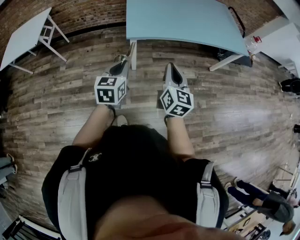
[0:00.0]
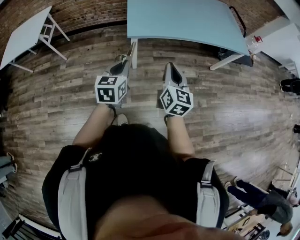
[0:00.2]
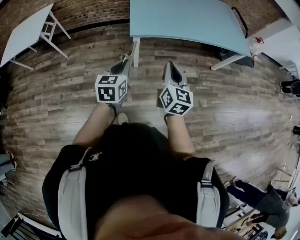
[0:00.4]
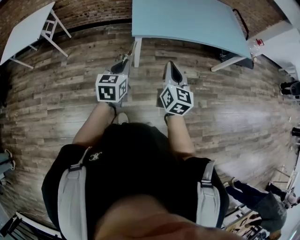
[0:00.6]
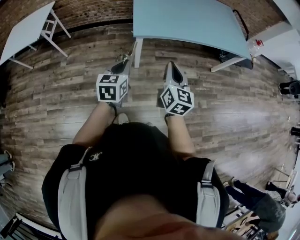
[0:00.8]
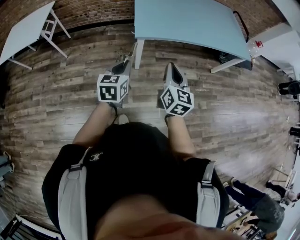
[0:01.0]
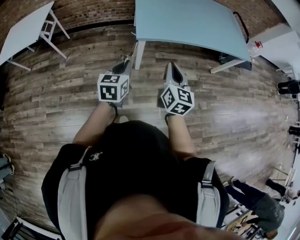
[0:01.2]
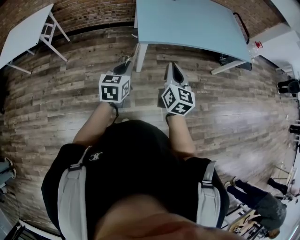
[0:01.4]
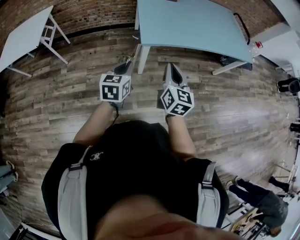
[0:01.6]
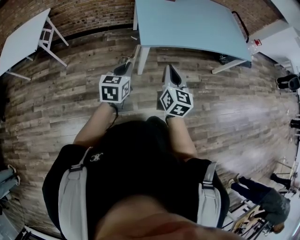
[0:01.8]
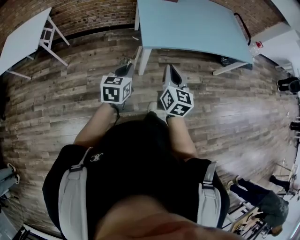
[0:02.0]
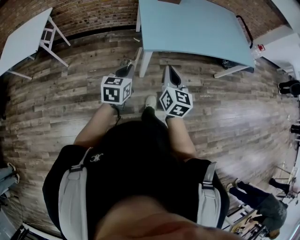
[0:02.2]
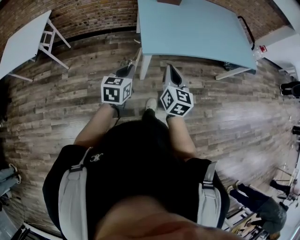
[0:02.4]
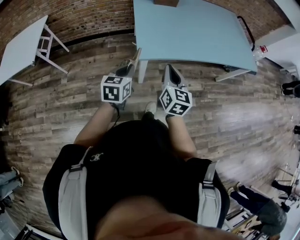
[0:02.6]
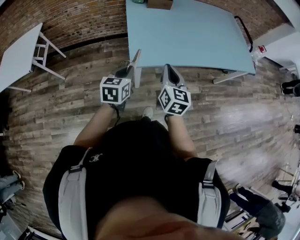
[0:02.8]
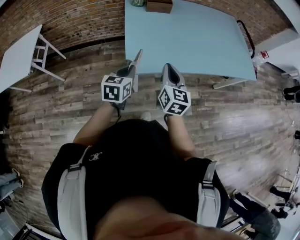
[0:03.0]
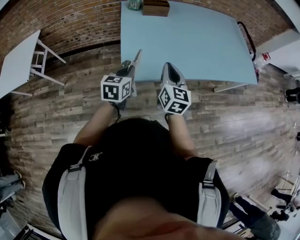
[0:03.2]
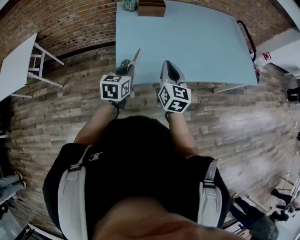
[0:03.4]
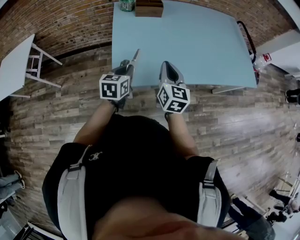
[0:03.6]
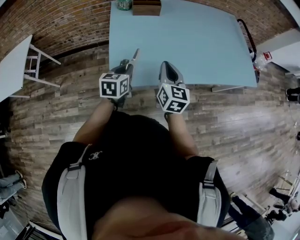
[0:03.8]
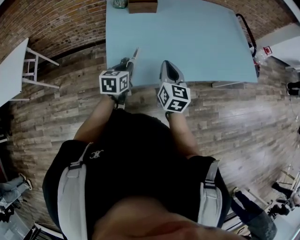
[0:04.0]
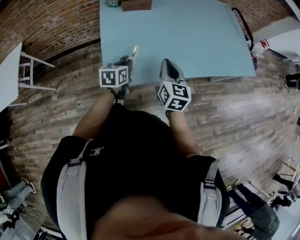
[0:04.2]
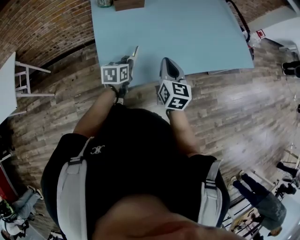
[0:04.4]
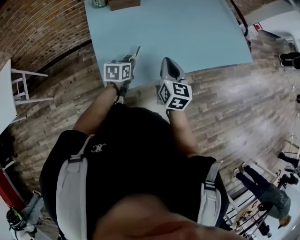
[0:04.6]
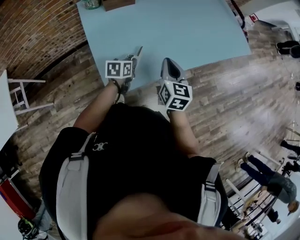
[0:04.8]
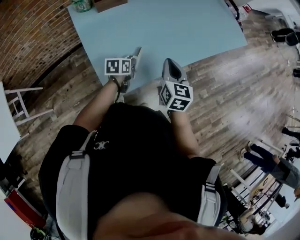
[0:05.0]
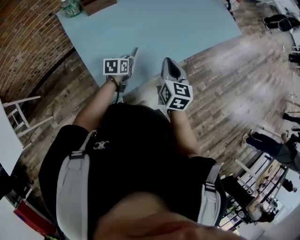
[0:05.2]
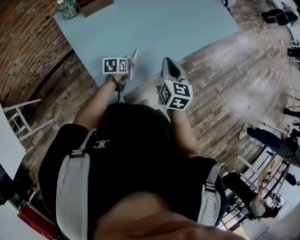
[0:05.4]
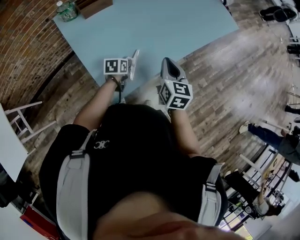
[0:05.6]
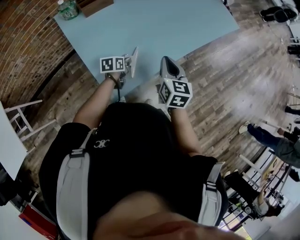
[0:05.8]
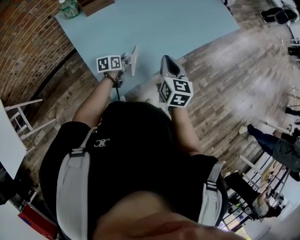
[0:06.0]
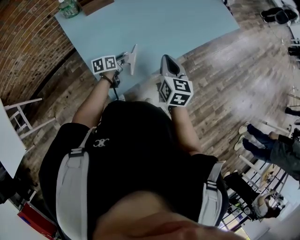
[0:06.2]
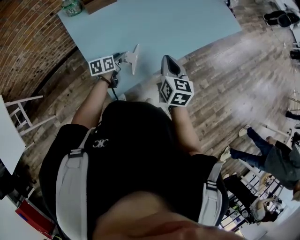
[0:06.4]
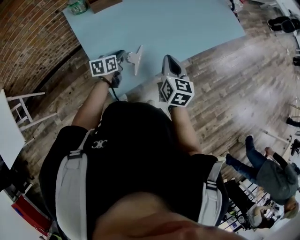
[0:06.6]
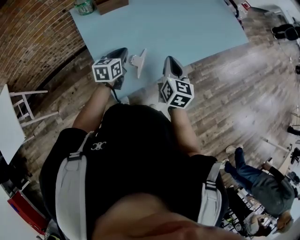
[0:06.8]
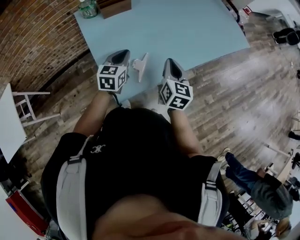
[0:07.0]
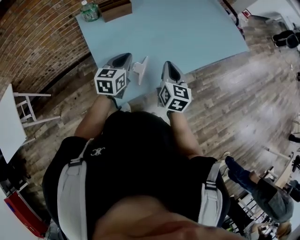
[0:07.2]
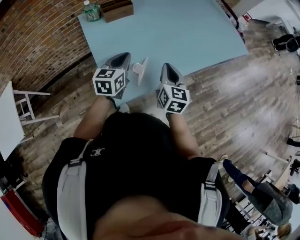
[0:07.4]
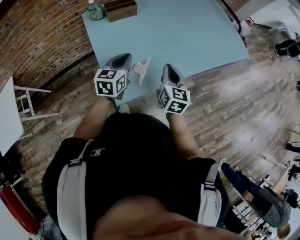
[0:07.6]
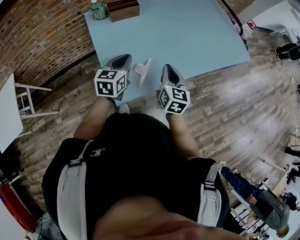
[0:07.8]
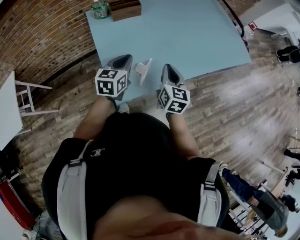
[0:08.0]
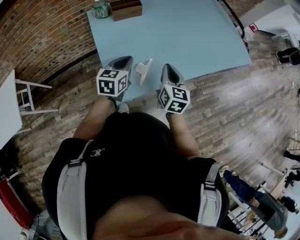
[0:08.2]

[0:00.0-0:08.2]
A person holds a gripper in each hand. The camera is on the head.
0.0 to 1.6 s: The left gripper travels to the left and forward by some 10 cm. The right gripper is displaced to the left by approximately 10 cm.
1.6 to 3.2 s: Both grippers move forward, approximately 25 cm.
3.2 to 5.0 s: The right gripper ends up approximately 15 cm from where it was, and turns by some 20 degrees. The left gripper shifts some 20 cm downward, and swivels approximately 40 degrees.
5.0 to 6.6 s: The left gripper shifts about 5 cm to the left, and opens and closes again.
6.6 to 8.2 s: The left gripper shifts about 15 cm upward, and swivels roughly 30 degrees.

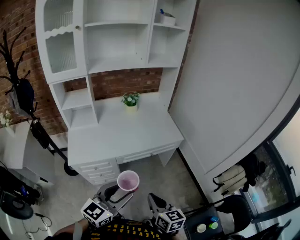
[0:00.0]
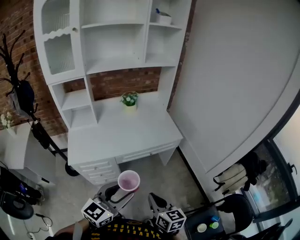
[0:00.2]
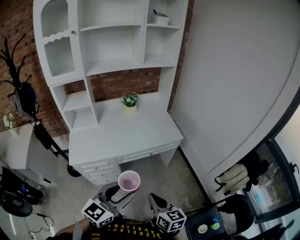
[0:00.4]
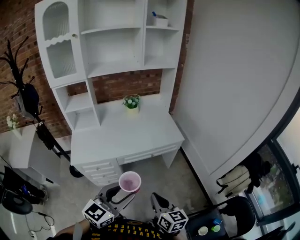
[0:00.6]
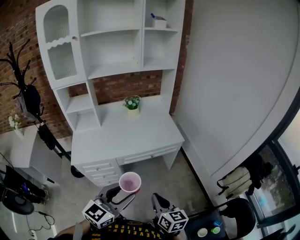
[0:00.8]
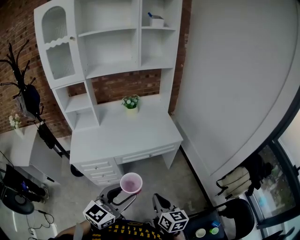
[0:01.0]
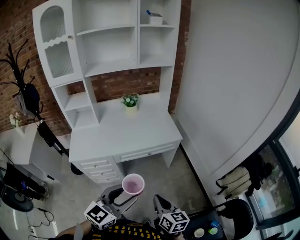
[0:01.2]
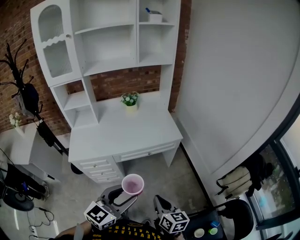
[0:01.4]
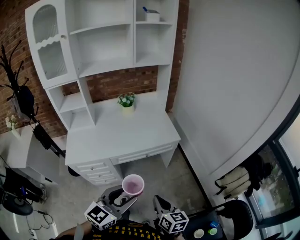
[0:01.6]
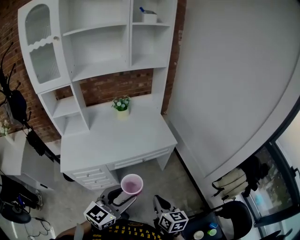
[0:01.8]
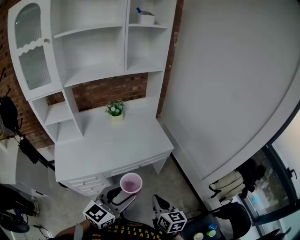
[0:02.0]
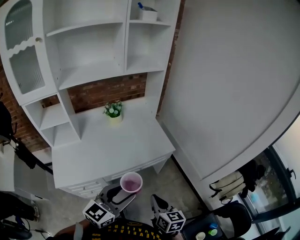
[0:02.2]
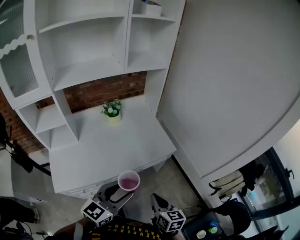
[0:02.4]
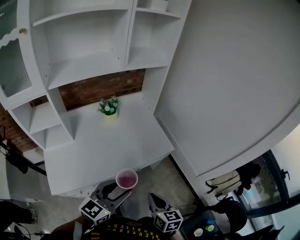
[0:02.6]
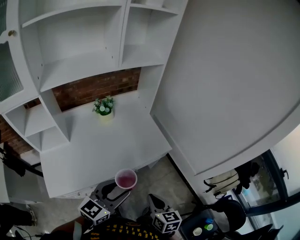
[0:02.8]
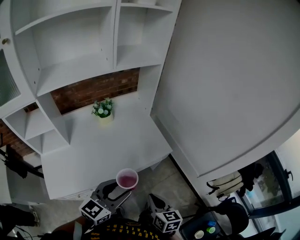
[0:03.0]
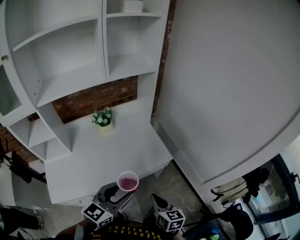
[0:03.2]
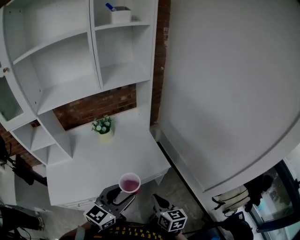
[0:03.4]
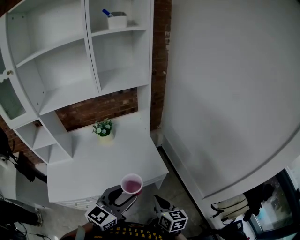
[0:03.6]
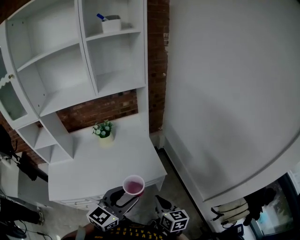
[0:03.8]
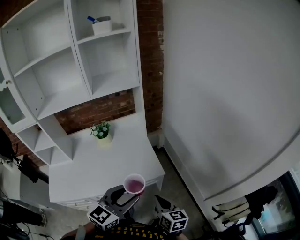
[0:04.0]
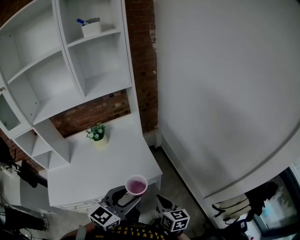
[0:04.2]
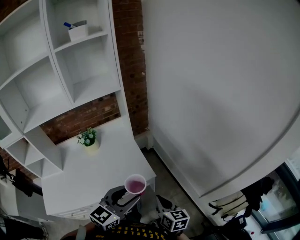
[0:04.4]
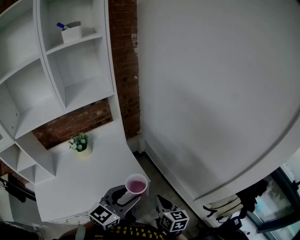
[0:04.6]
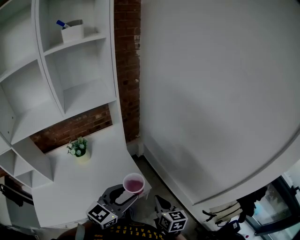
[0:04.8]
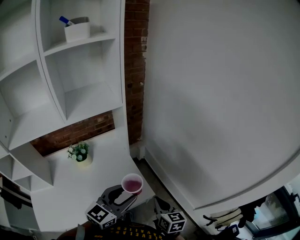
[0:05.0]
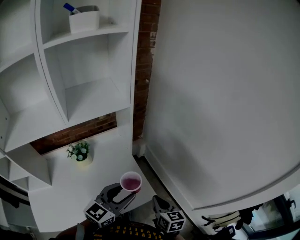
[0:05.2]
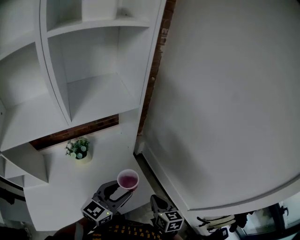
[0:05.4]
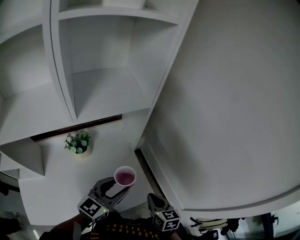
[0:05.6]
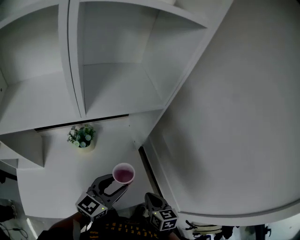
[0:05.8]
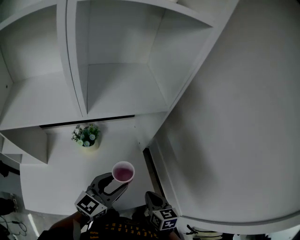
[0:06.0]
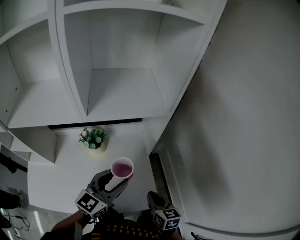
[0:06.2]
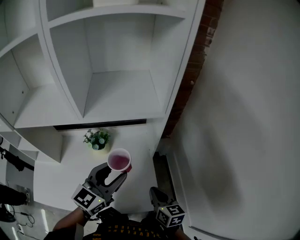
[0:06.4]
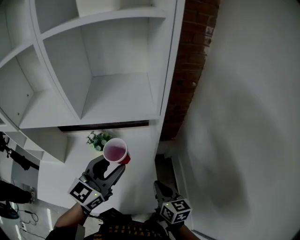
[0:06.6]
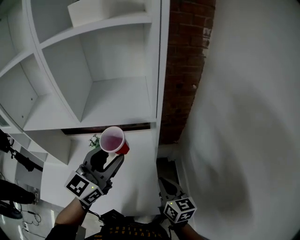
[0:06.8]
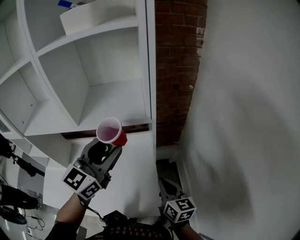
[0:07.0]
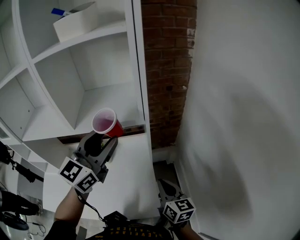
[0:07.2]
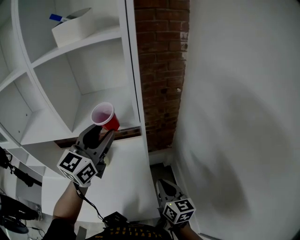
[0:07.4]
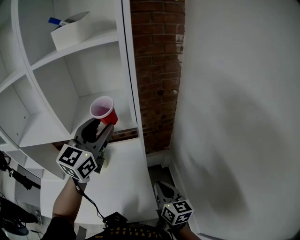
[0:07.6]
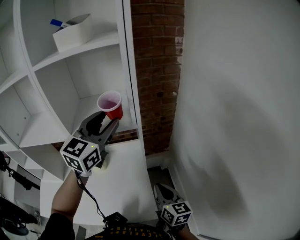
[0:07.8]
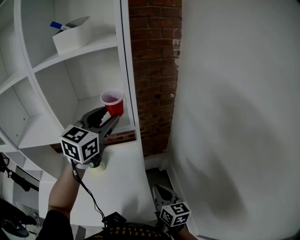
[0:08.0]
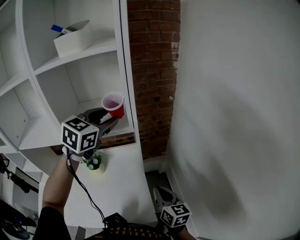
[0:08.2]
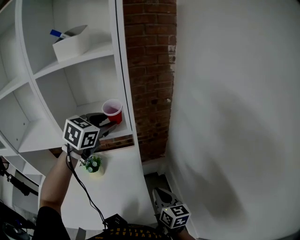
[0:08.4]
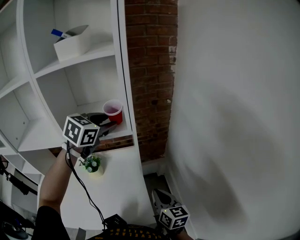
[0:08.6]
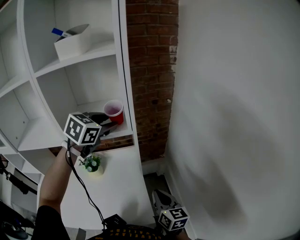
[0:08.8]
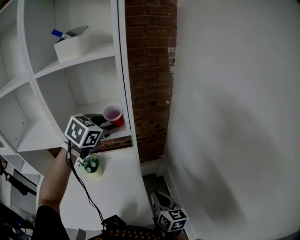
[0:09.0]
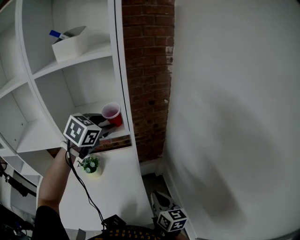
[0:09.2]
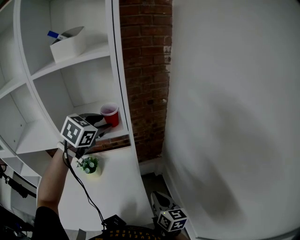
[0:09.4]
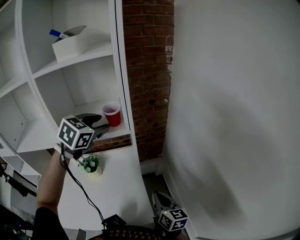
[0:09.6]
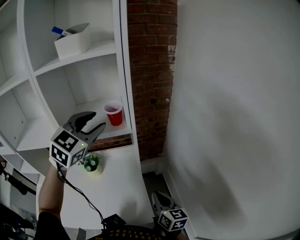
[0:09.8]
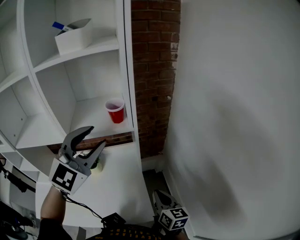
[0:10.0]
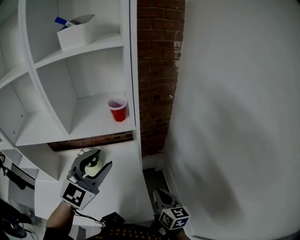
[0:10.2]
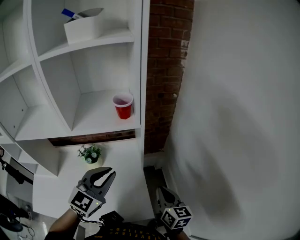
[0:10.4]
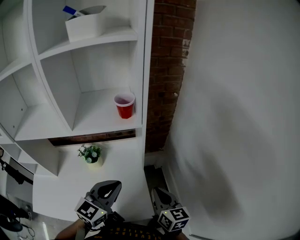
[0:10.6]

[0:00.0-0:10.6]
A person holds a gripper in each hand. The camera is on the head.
0.0 to 1.6 s: Both grippers move to the right, roughly 15 cm.
1.6 to 3.0 s: Both grippers travel together forward and to the left, some 25 cm.
3.0 to 4.6 s: Both grippers travel together to the right and forward, roughly 30 cm.
4.6 to 6.0 s: Both grippers travel together to the left and forward, about 30 cm. The right gripper changes its angle by approximately 20 degrees; the left gripper changes its angle by some 20 degrees.
6.0 to 7.6 s: The left gripper travels upward and forward by roughly 30 cm, and swivels about 30 degrees, while the right gripper shifts roughly 20 cm to the right, upward and forward, and swivels roughly 20 degrees.
7.6 to 9.0 s: The left gripper heads forward, covering about 5 cm, and tips its fingers downward by roughly 40 degrees.
9.0 to 10.6 s: The left gripper is displaced backward and downward by roughly 25 cm, rotates roughly 20 degrees, and closes.

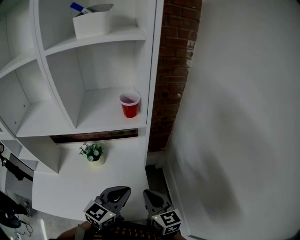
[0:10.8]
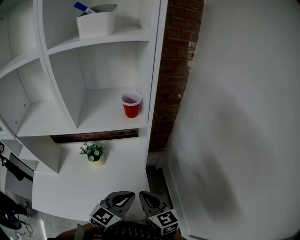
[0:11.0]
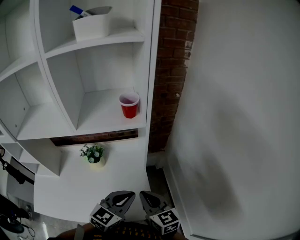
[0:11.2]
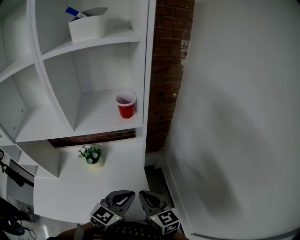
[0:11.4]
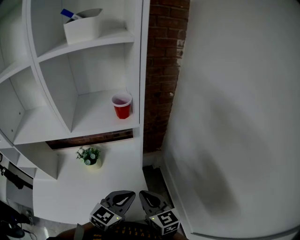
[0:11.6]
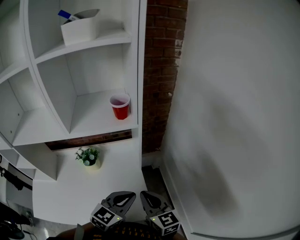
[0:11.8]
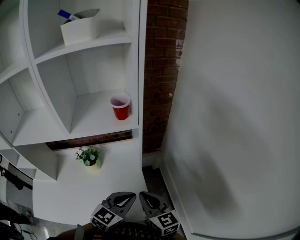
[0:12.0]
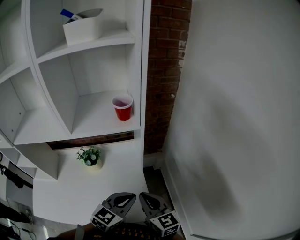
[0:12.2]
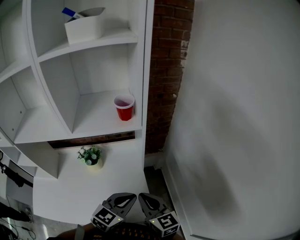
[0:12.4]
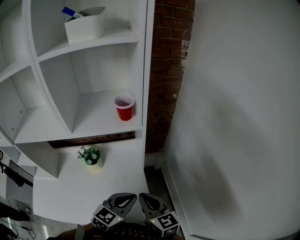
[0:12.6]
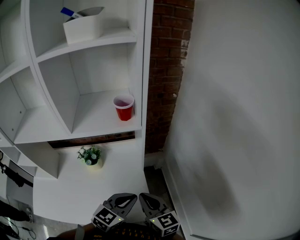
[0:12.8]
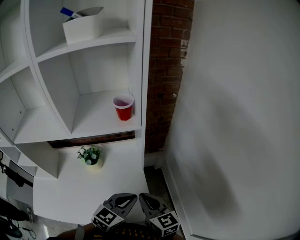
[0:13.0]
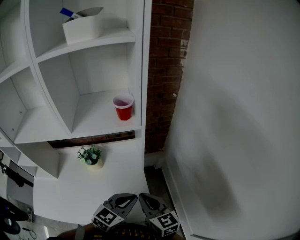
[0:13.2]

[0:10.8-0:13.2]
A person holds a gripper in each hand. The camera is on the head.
10.8 to 13.2 s: The grippers make only small movements.

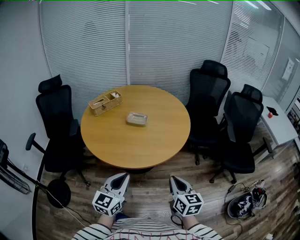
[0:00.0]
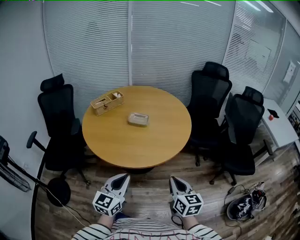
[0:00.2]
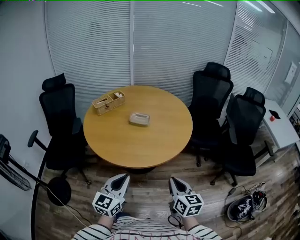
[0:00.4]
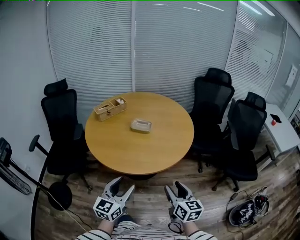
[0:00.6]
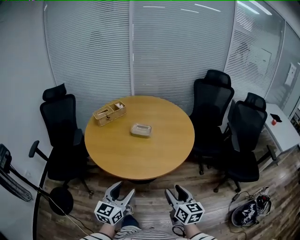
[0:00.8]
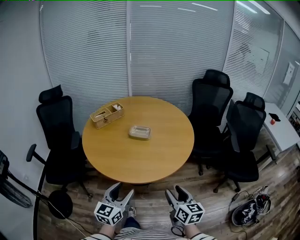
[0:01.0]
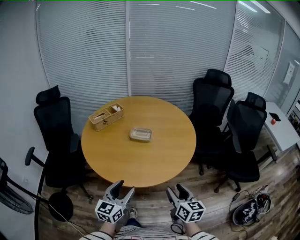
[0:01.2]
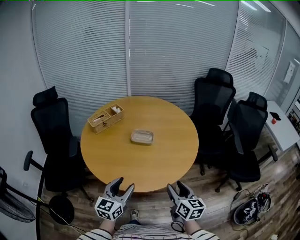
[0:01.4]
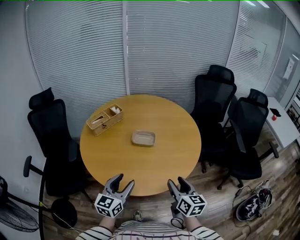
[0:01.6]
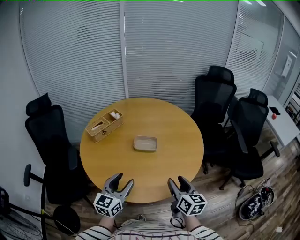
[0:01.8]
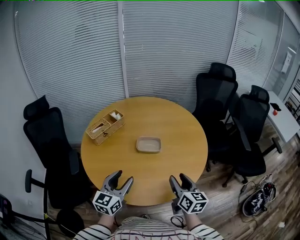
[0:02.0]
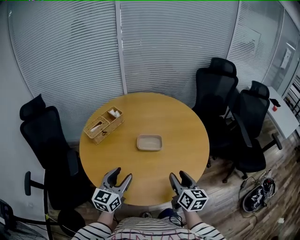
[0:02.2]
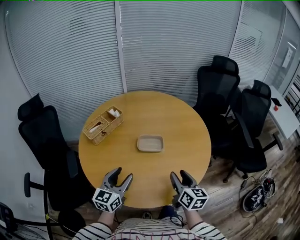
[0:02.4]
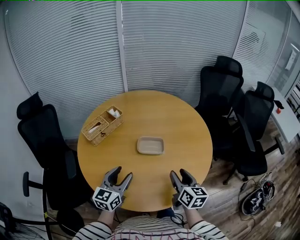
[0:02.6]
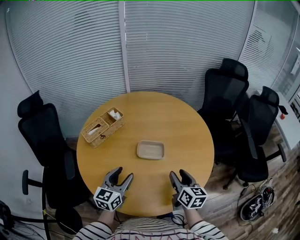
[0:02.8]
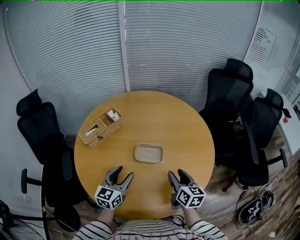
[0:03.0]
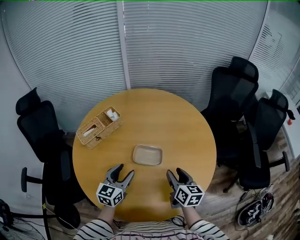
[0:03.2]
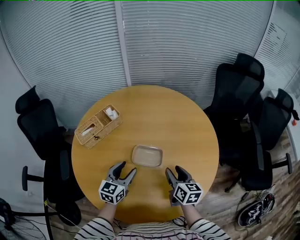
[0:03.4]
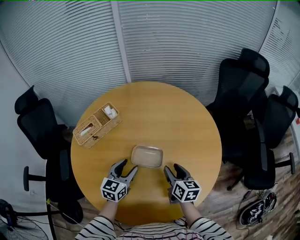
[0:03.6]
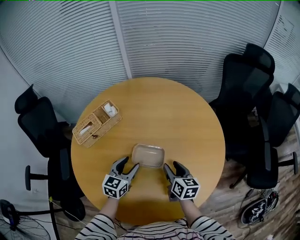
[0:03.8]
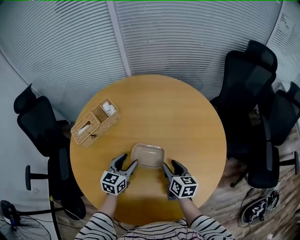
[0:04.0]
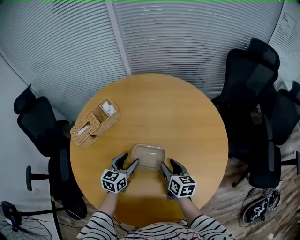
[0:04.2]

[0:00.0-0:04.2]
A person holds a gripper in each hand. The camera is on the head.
0.0 to 1.4 s: Both grippers travel together forward and to the left, approximately 15 cm. The right gripper opens its fingers; the left gripper opens.
1.4 to 2.8 s: The right gripper moves forward, roughly 25 cm. Meanwhile the left gripper moves forward and to the left, roughly 30 cm.
2.8 to 4.2 s: The grippers both shift forward and downward by some 25 cm.
